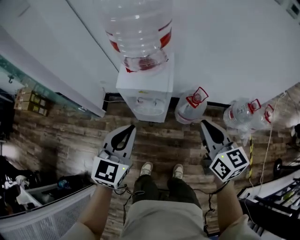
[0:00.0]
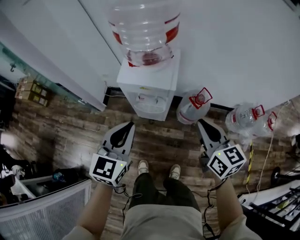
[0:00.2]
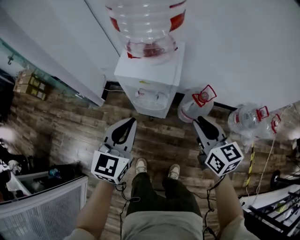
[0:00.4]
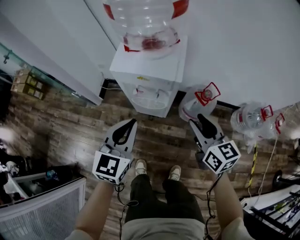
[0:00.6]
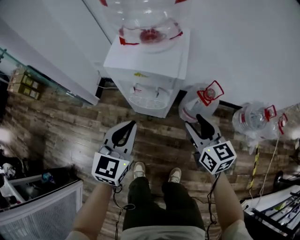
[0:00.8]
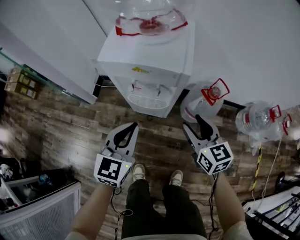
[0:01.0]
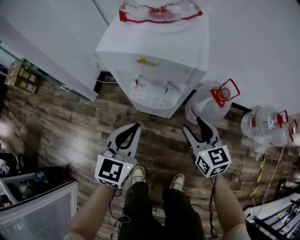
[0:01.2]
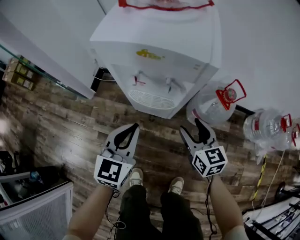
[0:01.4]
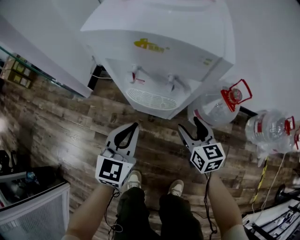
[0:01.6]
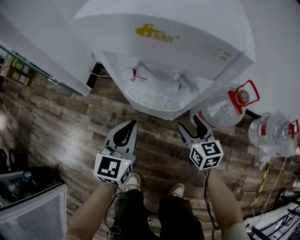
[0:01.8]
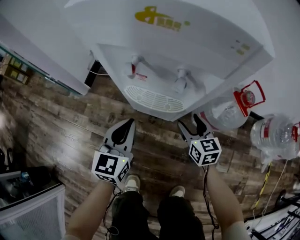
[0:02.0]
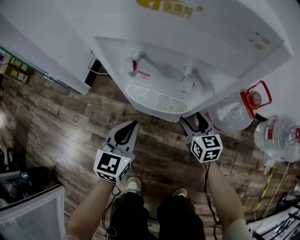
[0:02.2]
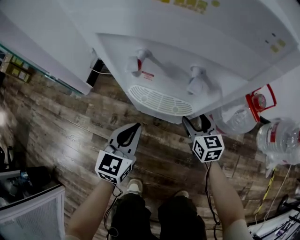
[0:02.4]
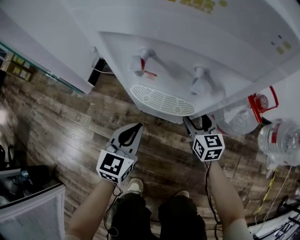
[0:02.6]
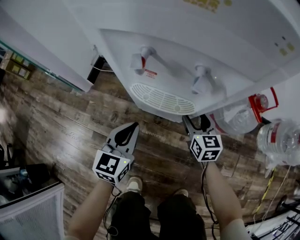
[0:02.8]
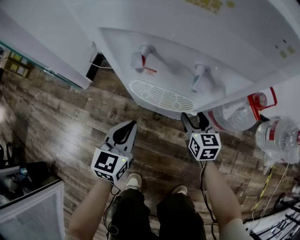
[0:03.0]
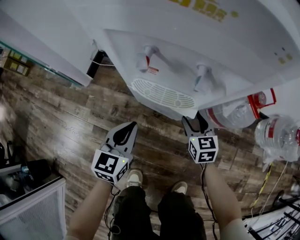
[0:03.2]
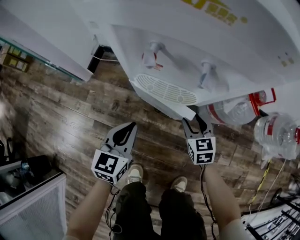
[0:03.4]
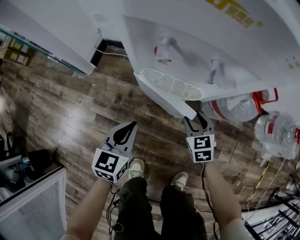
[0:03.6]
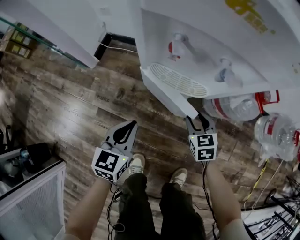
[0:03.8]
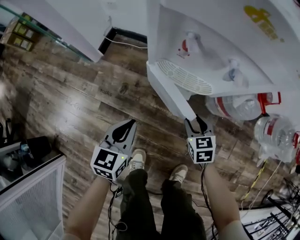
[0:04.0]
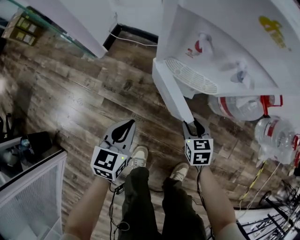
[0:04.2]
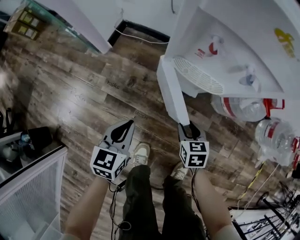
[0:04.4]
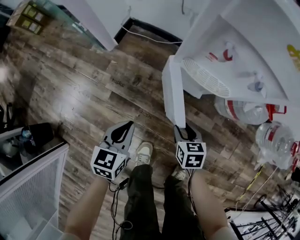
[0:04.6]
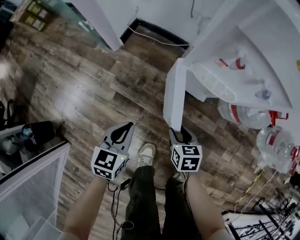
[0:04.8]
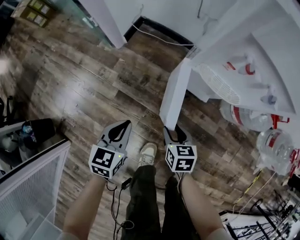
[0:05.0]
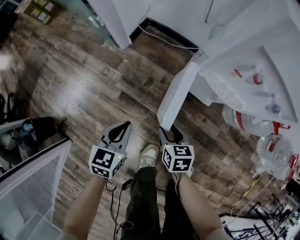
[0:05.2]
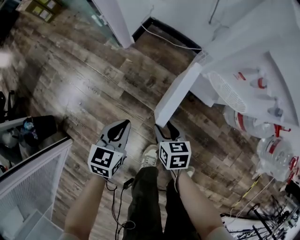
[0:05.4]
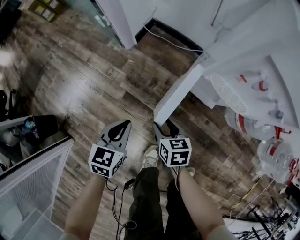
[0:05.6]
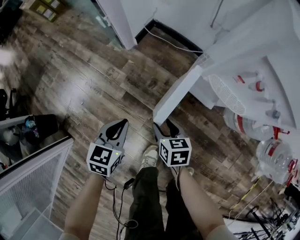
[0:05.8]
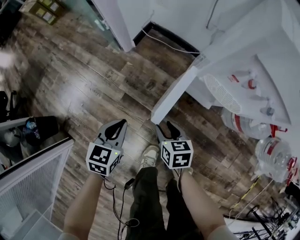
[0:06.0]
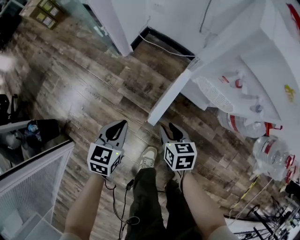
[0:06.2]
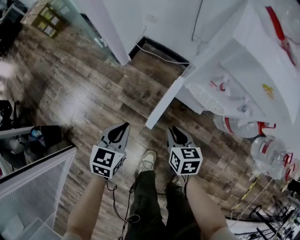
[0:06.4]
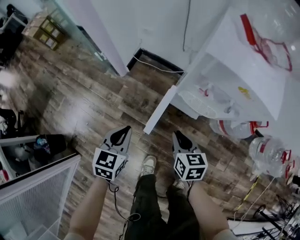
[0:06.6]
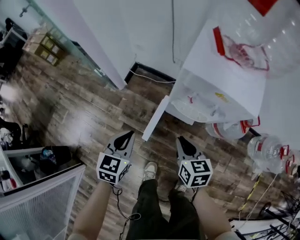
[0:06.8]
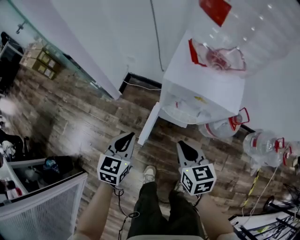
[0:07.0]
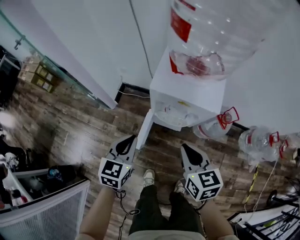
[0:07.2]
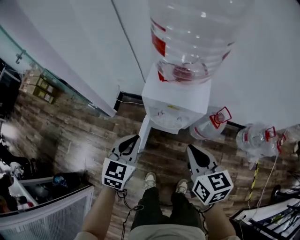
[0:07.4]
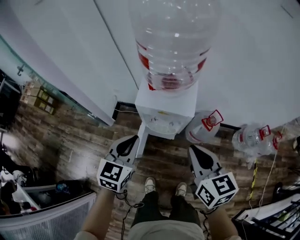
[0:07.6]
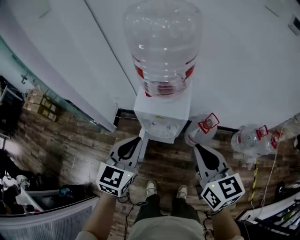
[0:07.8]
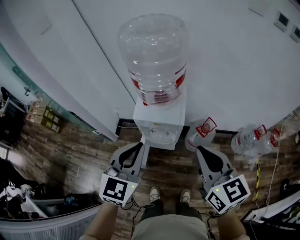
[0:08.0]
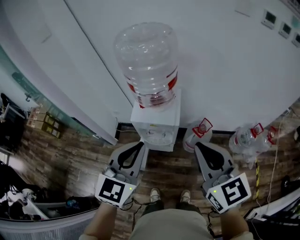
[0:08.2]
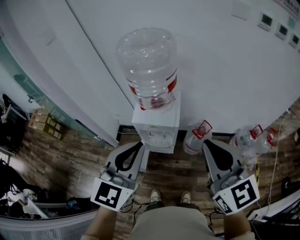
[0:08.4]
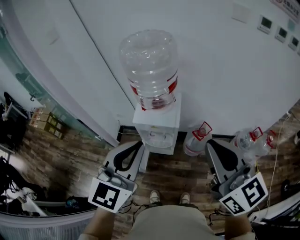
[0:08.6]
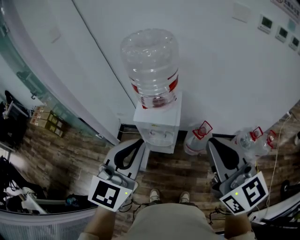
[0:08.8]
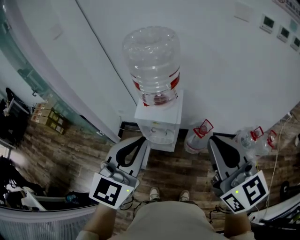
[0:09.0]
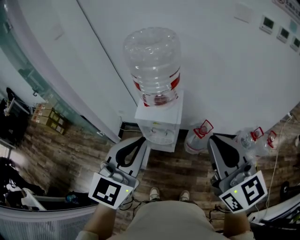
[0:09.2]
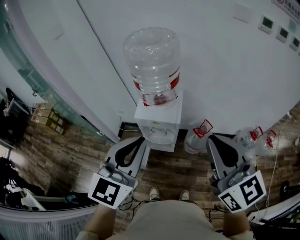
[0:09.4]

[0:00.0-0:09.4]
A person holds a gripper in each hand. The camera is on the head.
0:00.0 to 0:01.6: The grippers both shift downward by approximately 50 cm. The right gripper opens its fingers.
0:01.6 to 0:03.2: Both grippers move downward, some 15 cm.
0:03.2 to 0:04.8: Both grippers travel together to the left and backward, some 25 cm. The right gripper swivels about 30 degrees.
0:04.8 to 0:06.2: The right gripper goes approximately 10 cm to the left and upward. The left gripper goes about 5 cm to the left.
0:06.2 to 0:07.8: Both grippers move upward and to the right, approximately 60 cm. The left gripper swivels approximately 30 degrees; the right gripper tilts its fingers approximately 30 degrees upward, and closes its fingers.
0:07.8 to 0:09.4: The left gripper moves upward and backward, roughly 20 cm, while the right gripper is displaced upward by about 20 cm, and changes its angle by about 20 degrees.

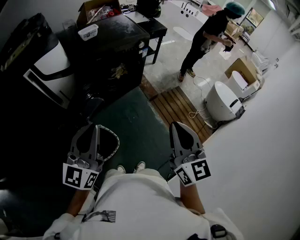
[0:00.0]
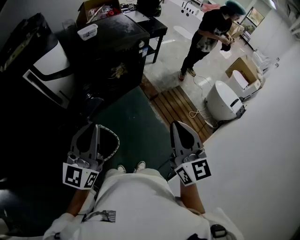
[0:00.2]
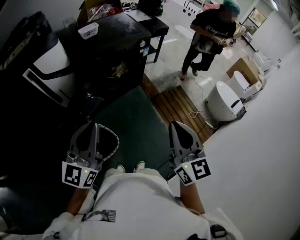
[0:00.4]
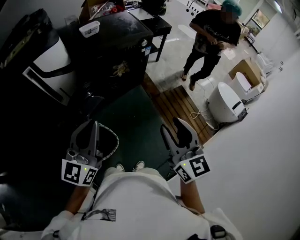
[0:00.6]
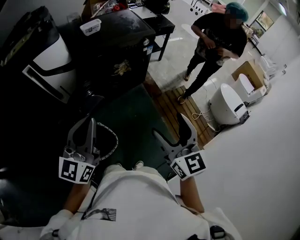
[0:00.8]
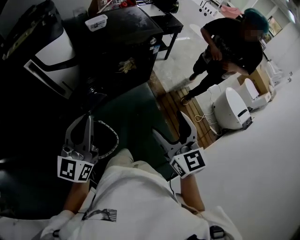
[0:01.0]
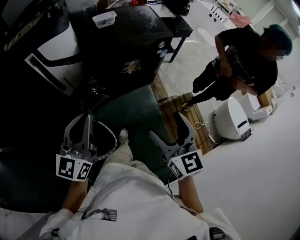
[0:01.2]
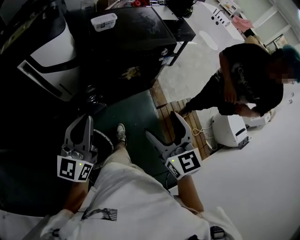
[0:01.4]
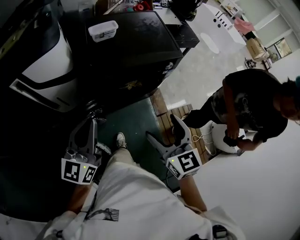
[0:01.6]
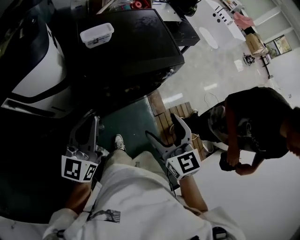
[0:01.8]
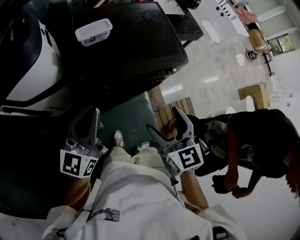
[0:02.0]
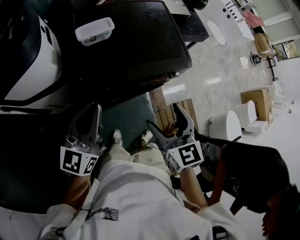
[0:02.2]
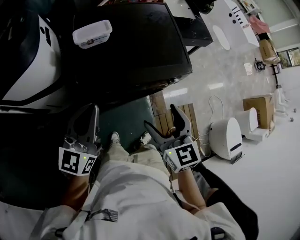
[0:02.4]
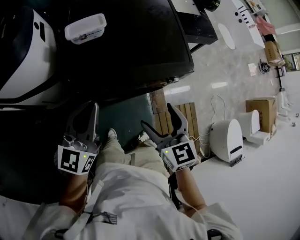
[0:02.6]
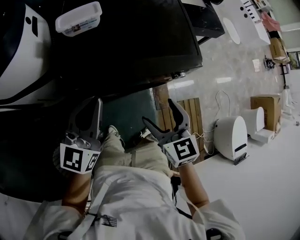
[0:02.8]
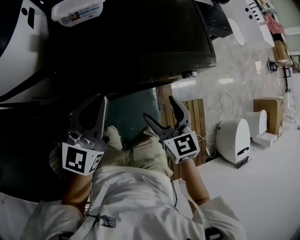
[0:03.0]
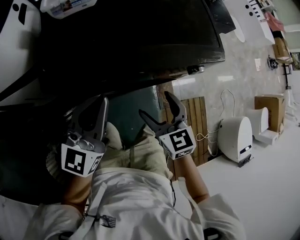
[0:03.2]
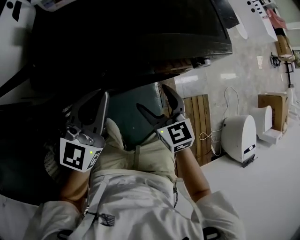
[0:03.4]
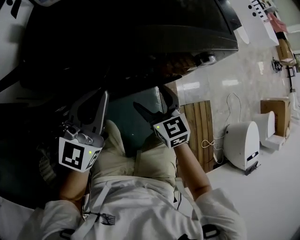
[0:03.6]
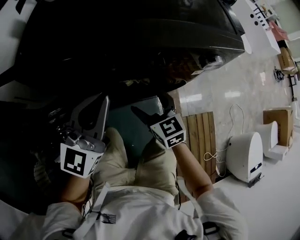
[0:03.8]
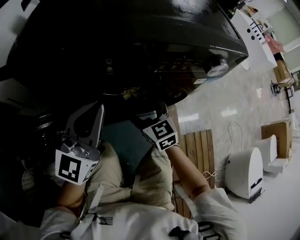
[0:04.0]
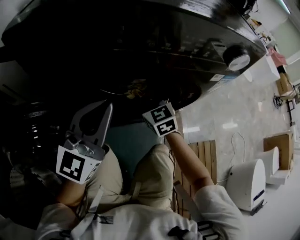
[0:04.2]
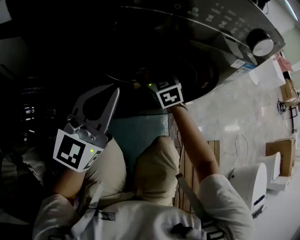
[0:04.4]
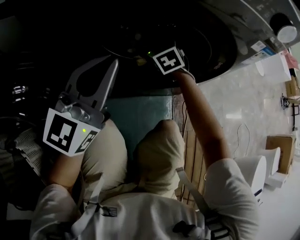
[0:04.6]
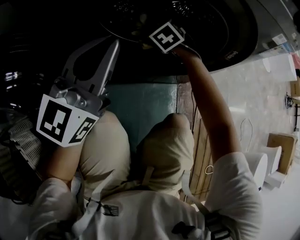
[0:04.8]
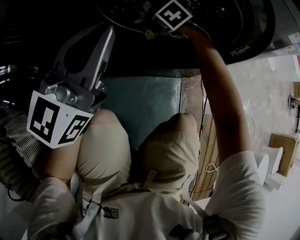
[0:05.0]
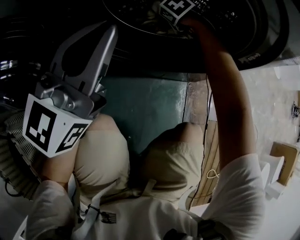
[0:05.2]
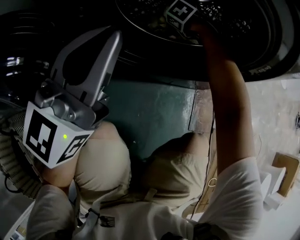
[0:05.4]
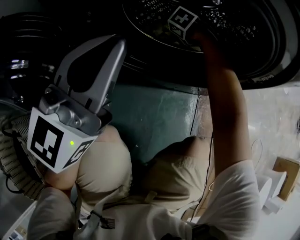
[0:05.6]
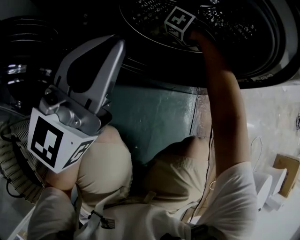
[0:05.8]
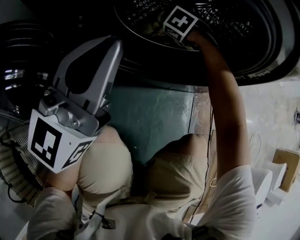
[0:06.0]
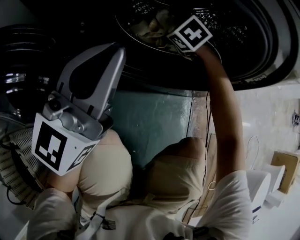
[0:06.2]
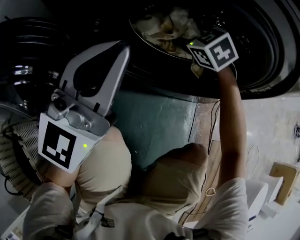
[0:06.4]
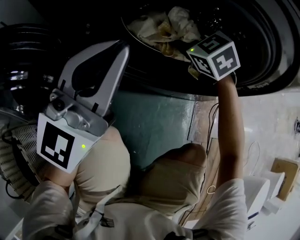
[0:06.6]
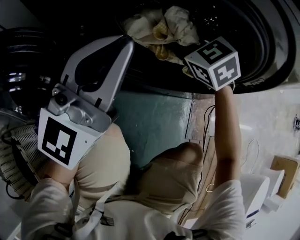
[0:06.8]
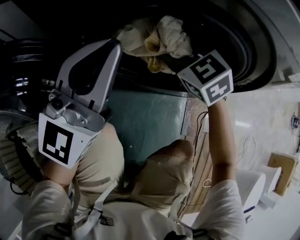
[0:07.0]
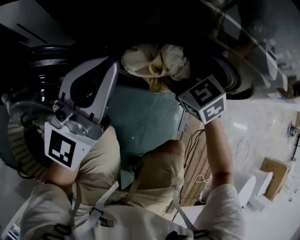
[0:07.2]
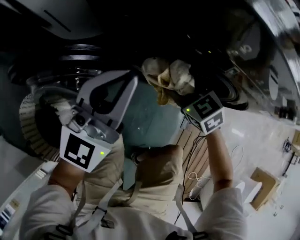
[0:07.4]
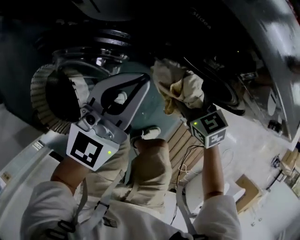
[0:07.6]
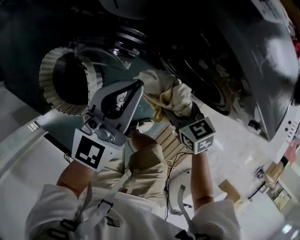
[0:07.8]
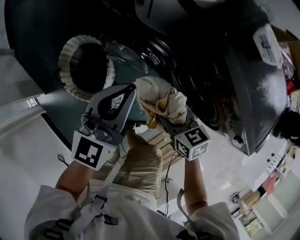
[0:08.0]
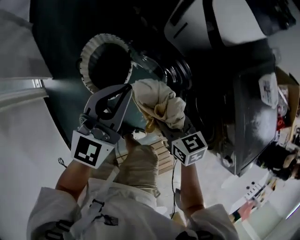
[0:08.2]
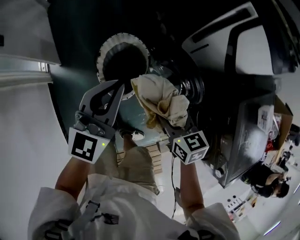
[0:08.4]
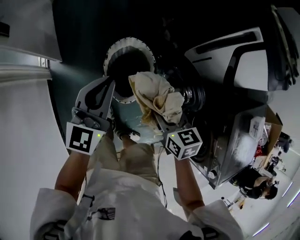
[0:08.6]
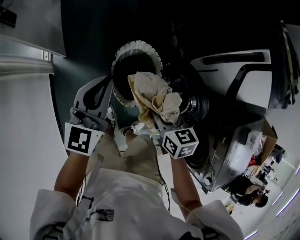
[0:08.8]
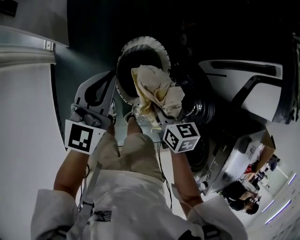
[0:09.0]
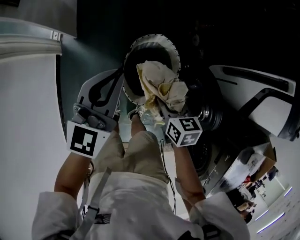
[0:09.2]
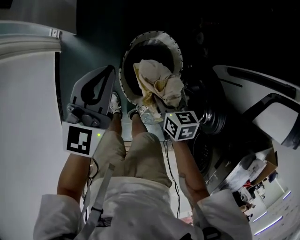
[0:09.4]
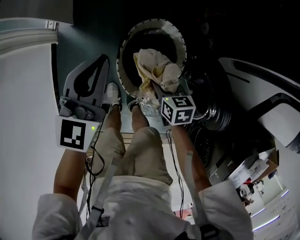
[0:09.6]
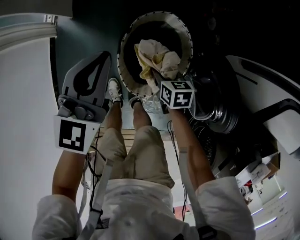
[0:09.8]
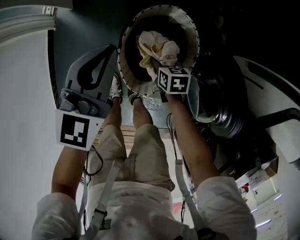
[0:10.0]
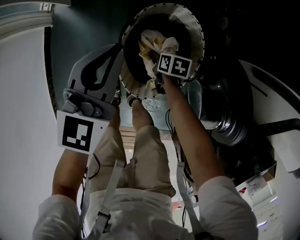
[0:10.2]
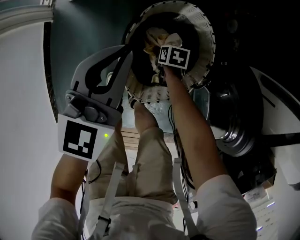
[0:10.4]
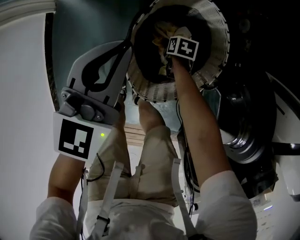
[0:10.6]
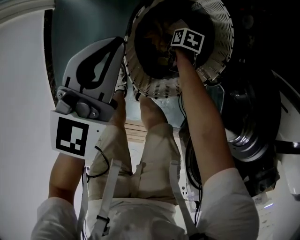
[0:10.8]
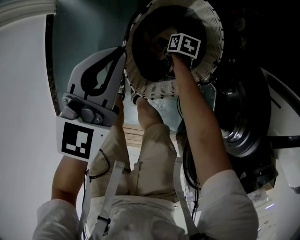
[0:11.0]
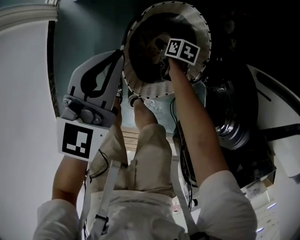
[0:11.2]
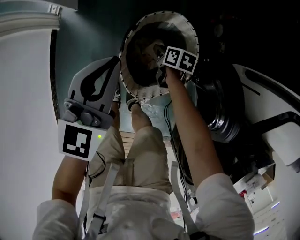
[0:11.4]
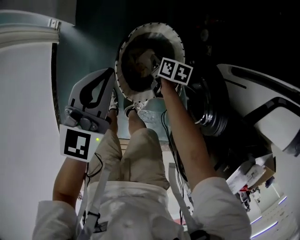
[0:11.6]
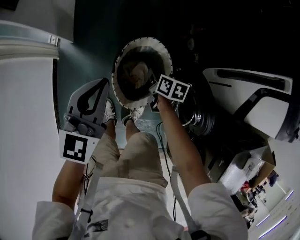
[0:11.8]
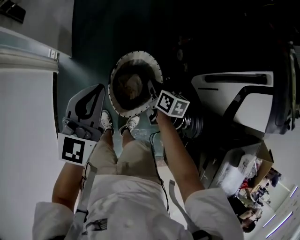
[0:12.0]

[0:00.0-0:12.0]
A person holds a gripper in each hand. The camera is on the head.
0:00.0 to 0:01.6: The grippers both shift forward by roughly 35 cm. The right gripper changes its angle by some 30 degrees, and opens.
0:01.6 to 0:03.0: The right gripper goes about 35 cm forward and downward. Meanwhile the left gripper shifts approximately 35 cm forward, downward and to the right.
0:03.0 to 0:04.4: The left gripper travels downward by about 35 cm. Meanwhile the right gripper is displaced downward and forward by roughly 40 cm, and rotates roughly 20 degrees.
0:04.4 to 0:06.0: The left gripper heads downward, covering some 5 cm; the right gripper goes some 15 cm downward, tips its fingers downward by about 40 degrees, and closes.
0:06.0 to 0:07.6: The left gripper heads upward, covering some 20 cm. Meanwhile the right gripper changes place by some 40 cm, and swivels approximately 40 degrees.
0:07.6 to 0:09.0: Both grippers are carried approximately 60 cm. The right gripper swivels some 40 degrees. Meanwhile the left gripper swivels about 70 degrees.
0:09.0 to 0:10.4: The right gripper moves downward, roughly 50 cm, and turns by about 30 degrees. The left gripper goes roughly 25 cm downward.
0:10.4 to 0:12.0: Both grippers travel together upward, approximately 35 cm. The right gripper points its fingers about 30 degrees further upward.

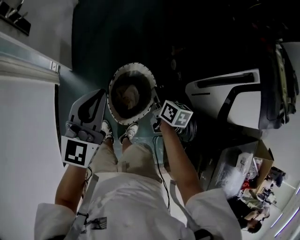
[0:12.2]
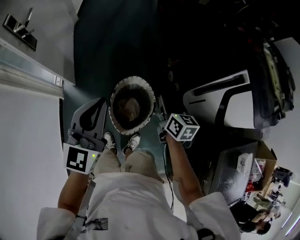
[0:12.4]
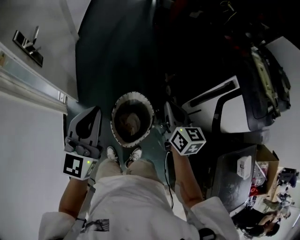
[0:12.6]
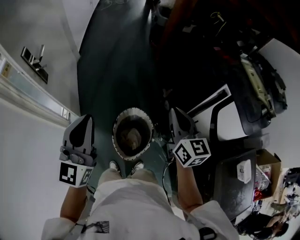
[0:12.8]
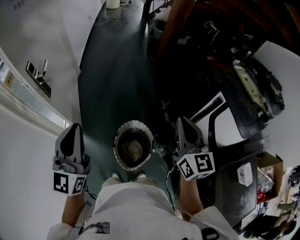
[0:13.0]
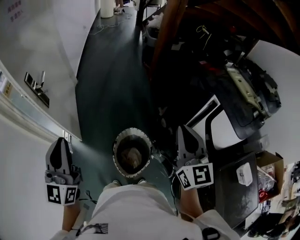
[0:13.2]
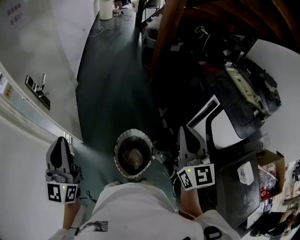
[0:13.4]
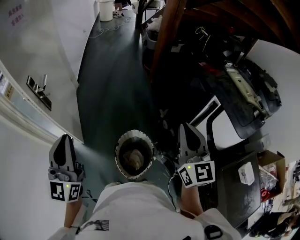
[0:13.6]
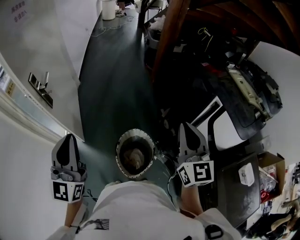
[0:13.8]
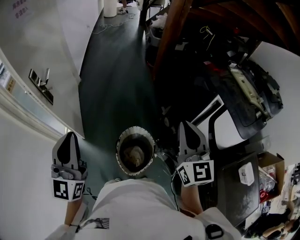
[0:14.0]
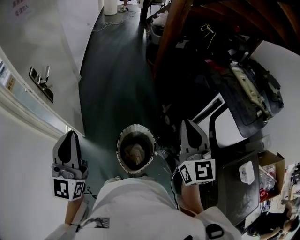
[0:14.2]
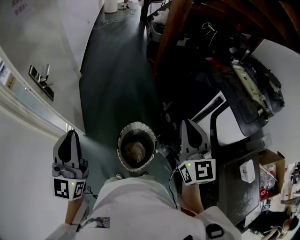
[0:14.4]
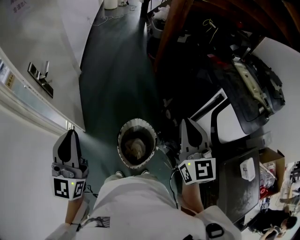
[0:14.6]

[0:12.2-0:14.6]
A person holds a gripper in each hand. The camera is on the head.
0:12.2 to 0:13.4: The right gripper moves upward, approximately 40 cm, and tilts its fingers roughly 40 degrees upward. Meanwhile the left gripper moves upward and to the left, approximately 25 cm, and changes its angle by roughly 20 degrees.
0:13.4 to 0:14.6: The grippers move only a little.
